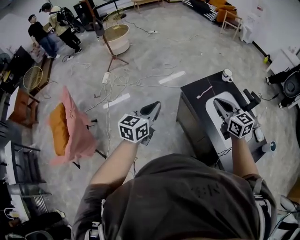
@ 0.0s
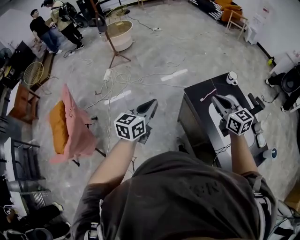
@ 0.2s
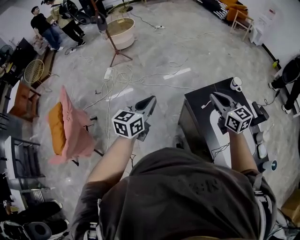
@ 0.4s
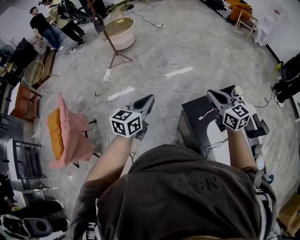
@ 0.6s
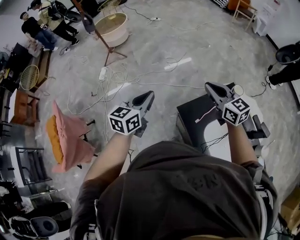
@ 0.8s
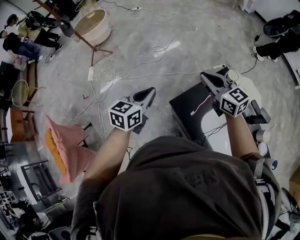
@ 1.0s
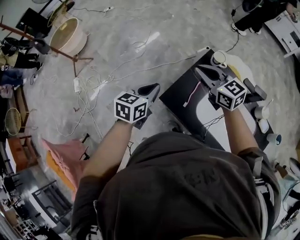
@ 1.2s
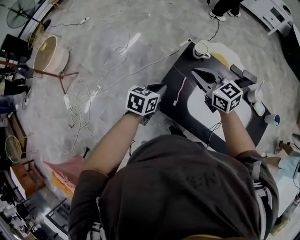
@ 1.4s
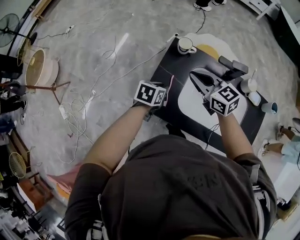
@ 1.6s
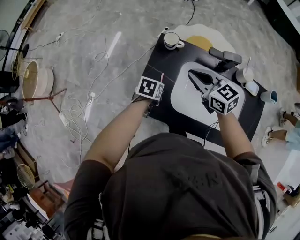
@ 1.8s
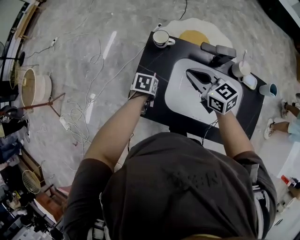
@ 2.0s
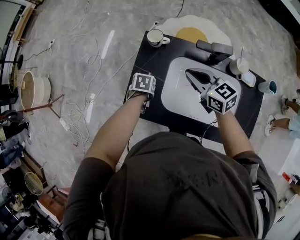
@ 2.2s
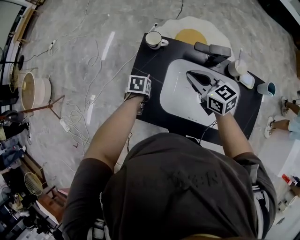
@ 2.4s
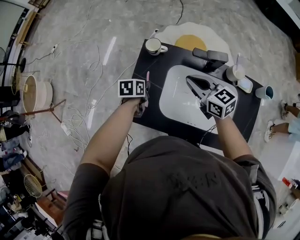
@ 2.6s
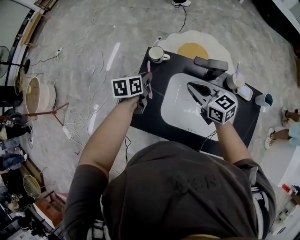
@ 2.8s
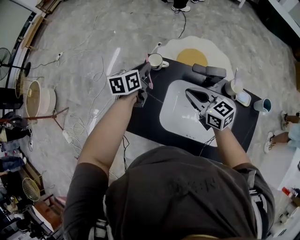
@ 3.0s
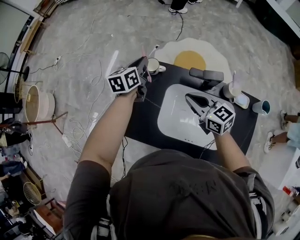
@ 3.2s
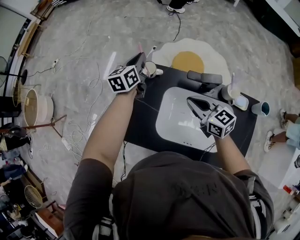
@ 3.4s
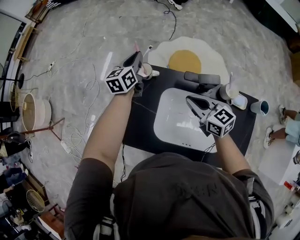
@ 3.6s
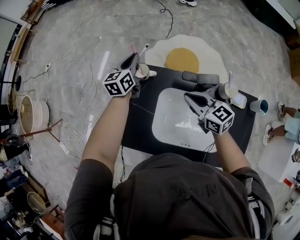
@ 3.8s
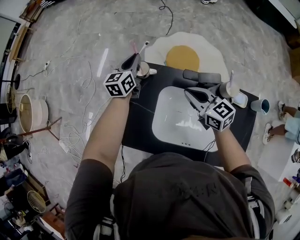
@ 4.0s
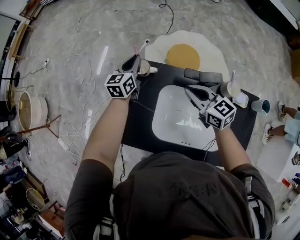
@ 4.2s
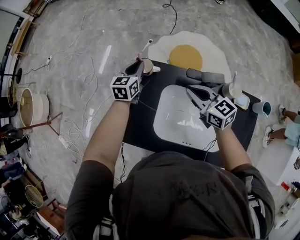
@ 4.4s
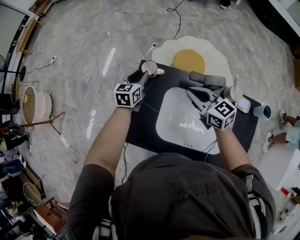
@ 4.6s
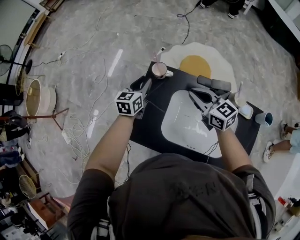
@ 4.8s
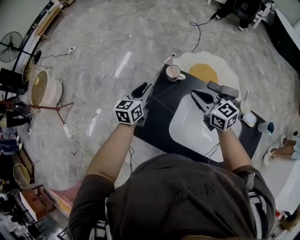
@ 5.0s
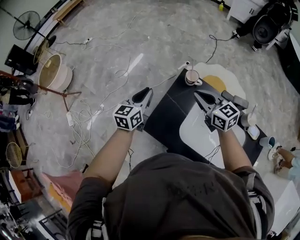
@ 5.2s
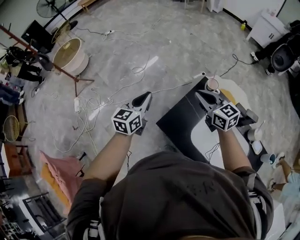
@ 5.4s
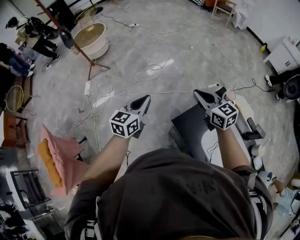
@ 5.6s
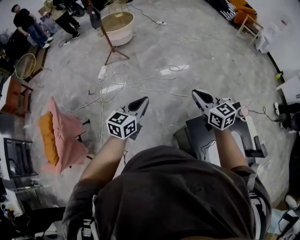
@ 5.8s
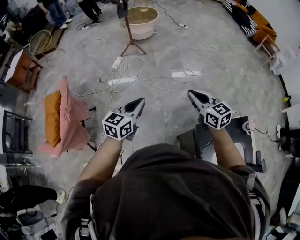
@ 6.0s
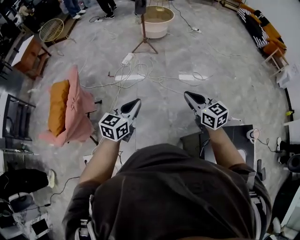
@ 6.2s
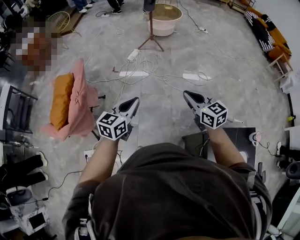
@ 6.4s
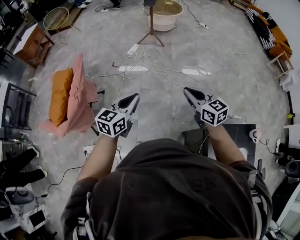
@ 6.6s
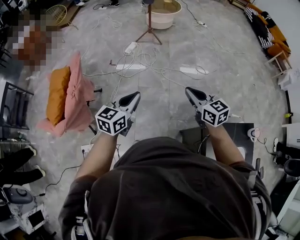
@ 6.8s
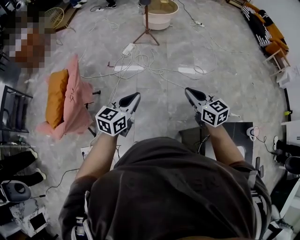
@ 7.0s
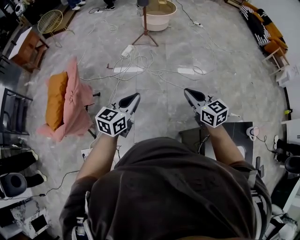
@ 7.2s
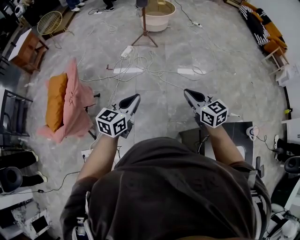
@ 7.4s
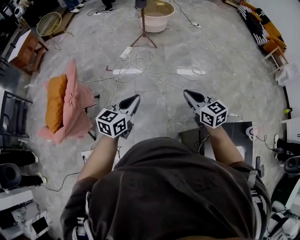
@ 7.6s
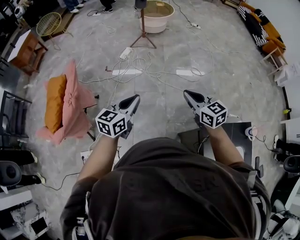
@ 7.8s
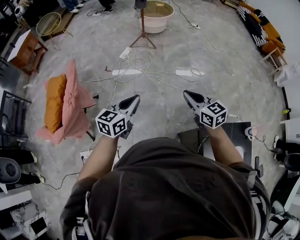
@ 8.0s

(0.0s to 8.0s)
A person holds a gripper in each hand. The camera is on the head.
0.0s - 1.6s: The right gripper shifts by approximately 30 cm, and swivels some 30 degrees. The left gripper shifts by some 50 cm, and angles its fingers downward, by about 40 degrees.
1.6s - 3.2s: The right gripper shifts by roughly 15 cm. Meanwhile the left gripper ends up some 25 cm from where it was, and changes its angle by some 30 degrees.
3.2s - 4.8s: The right gripper moves forward, some 5 cm. The left gripper goes some 5 cm downward, and opens its fingers.
4.8s - 6.4s: Both grippers are carried some 70 cm. The left gripper rotates roughly 60 degrees, and closes its fingers. The right gripper rotates approximately 70 degrees.
6.4s - 8.0s: The grippers move only a little.

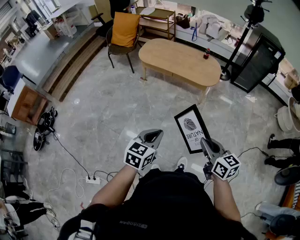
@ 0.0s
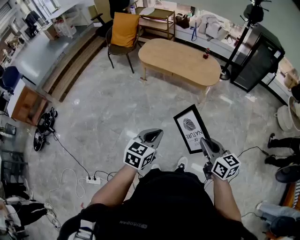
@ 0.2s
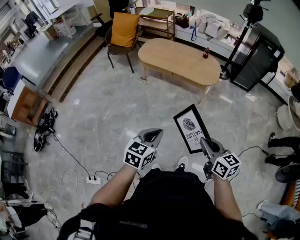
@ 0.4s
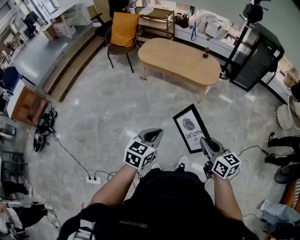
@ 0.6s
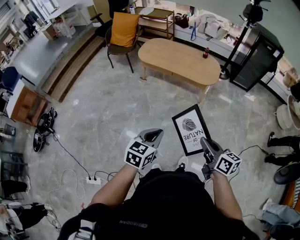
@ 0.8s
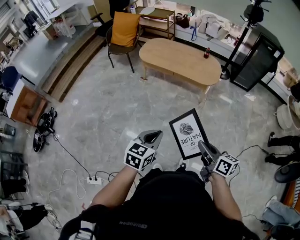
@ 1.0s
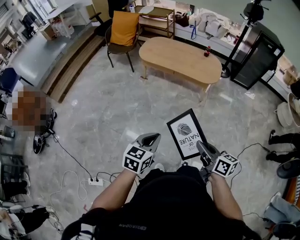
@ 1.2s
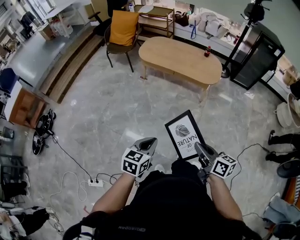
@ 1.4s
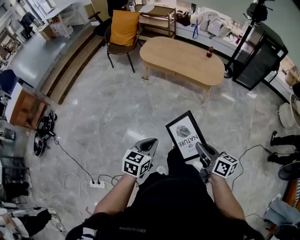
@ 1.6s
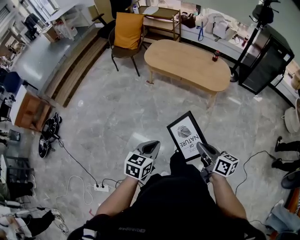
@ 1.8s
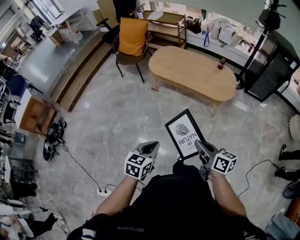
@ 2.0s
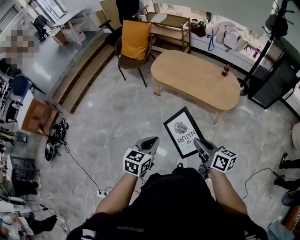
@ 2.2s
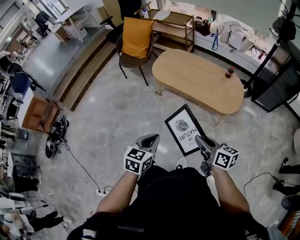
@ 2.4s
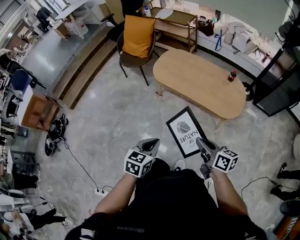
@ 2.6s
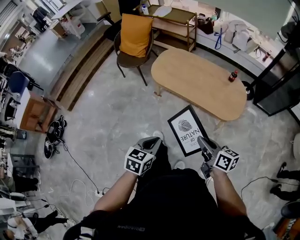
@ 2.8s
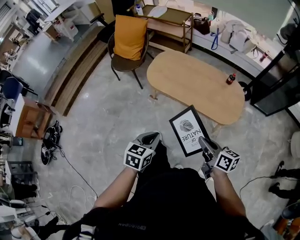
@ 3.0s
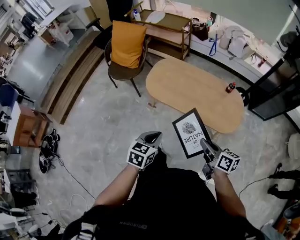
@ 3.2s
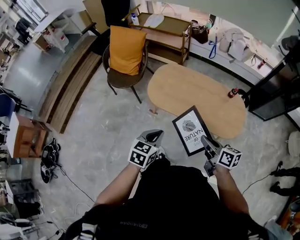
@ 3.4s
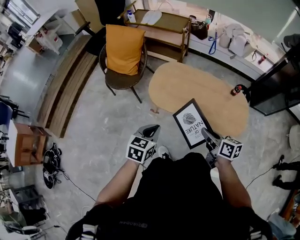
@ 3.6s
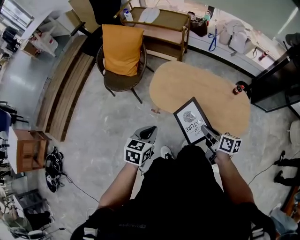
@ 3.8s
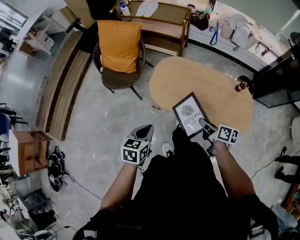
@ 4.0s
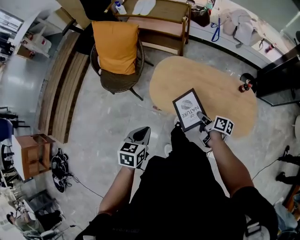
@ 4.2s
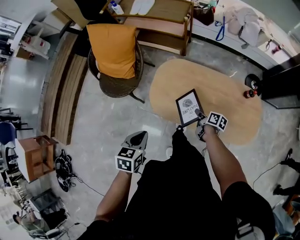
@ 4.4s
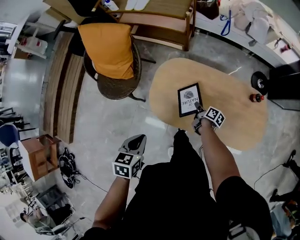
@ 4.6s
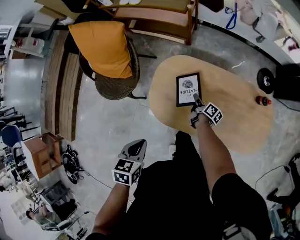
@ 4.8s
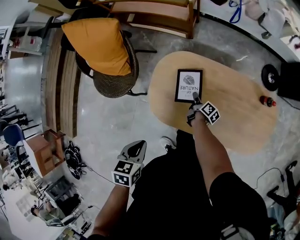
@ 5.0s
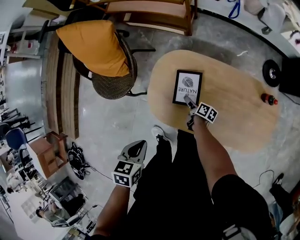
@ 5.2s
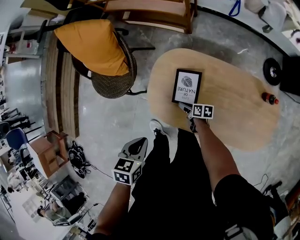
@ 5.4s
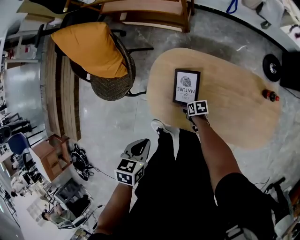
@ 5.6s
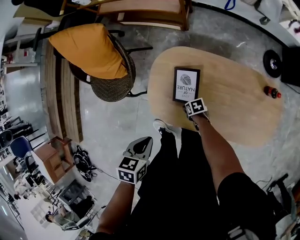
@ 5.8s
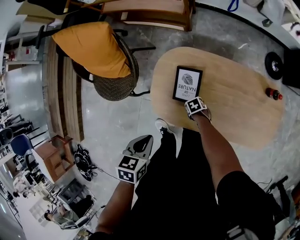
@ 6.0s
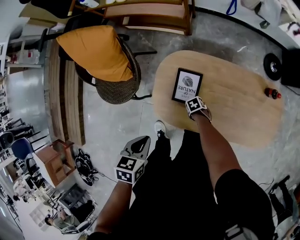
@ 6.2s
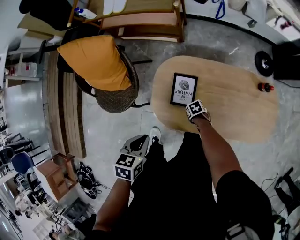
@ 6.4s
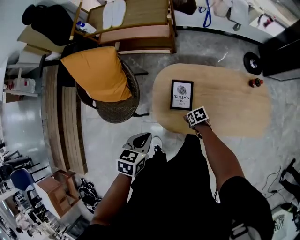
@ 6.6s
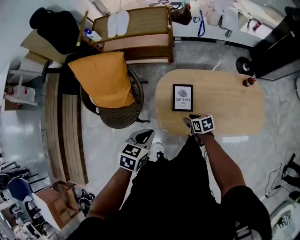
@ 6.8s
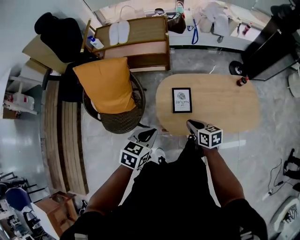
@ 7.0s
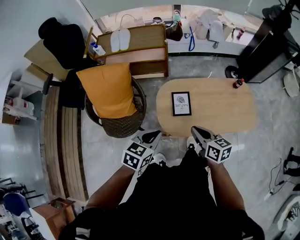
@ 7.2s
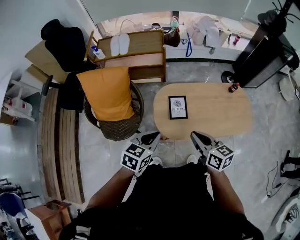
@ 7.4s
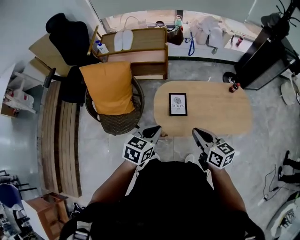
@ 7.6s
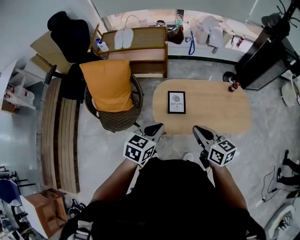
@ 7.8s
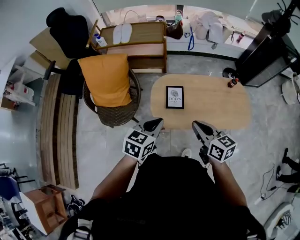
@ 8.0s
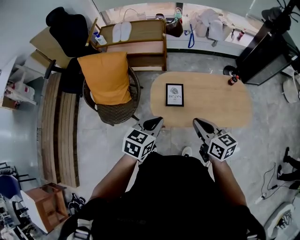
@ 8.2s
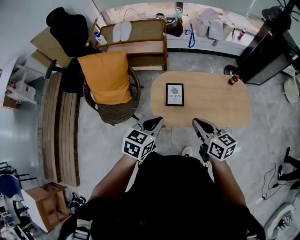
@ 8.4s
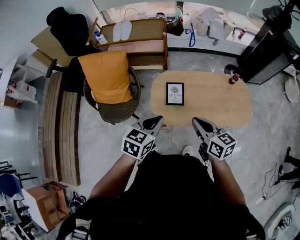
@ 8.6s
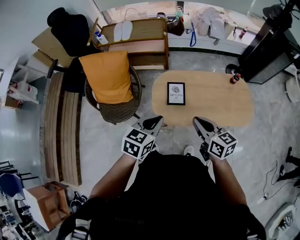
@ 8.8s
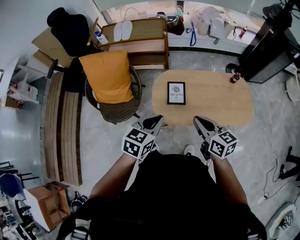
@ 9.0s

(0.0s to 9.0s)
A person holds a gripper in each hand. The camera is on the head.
0.0s - 1.6s: The grippers both shift to the left by about 10 cm. The right gripper rotates some 20 degrees.
1.6s - 3.0s: The two grippers travel together, forward, roughly 40 cm.
3.0s - 4.4s: Both grippers are carried forward, some 50 cm. The right gripper travels downward by roughly 25 cm, and rotates about 40 degrees.
4.4s - 6.0s: The left gripper shifts by approximately 15 cm, while the right gripper moves downward, some 25 cm, tips its fingers downward by approximately 30 degrees, and opens up.
6.0s - 7.6s: The right gripper is displaced upward by about 50 cm, points its fingers about 50 degrees further upward, and closes its fingers, while the left gripper goes about 20 cm upward, and rotates about 40 degrees.
7.6s - 9.0s: The left gripper is displaced to the right by some 5 cm.

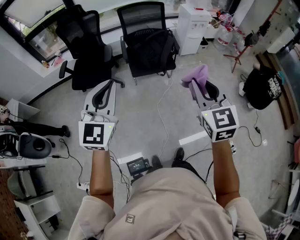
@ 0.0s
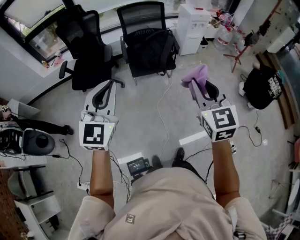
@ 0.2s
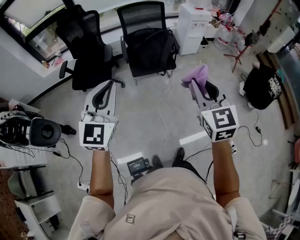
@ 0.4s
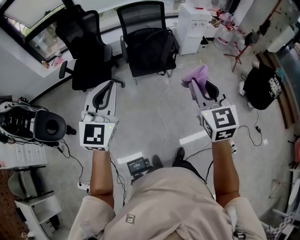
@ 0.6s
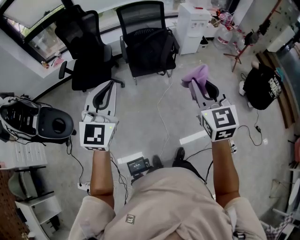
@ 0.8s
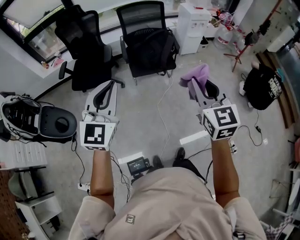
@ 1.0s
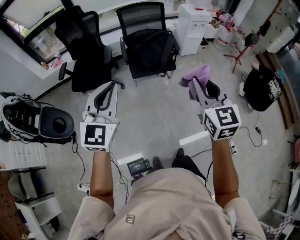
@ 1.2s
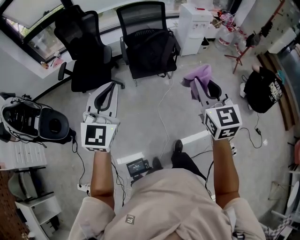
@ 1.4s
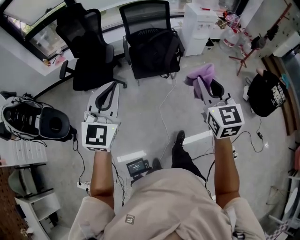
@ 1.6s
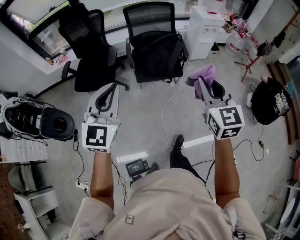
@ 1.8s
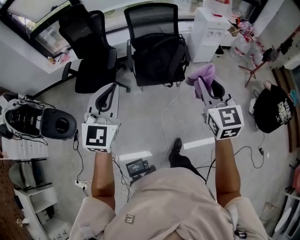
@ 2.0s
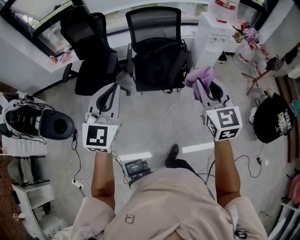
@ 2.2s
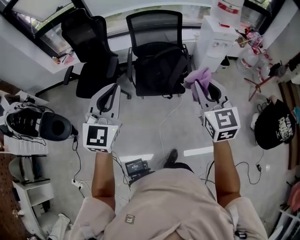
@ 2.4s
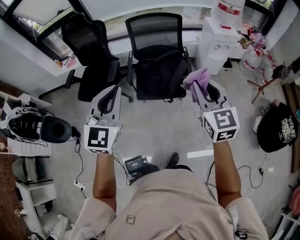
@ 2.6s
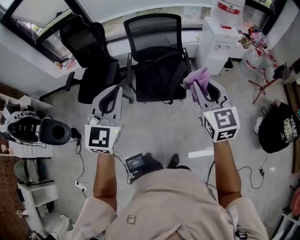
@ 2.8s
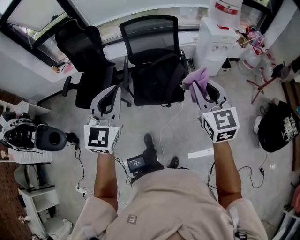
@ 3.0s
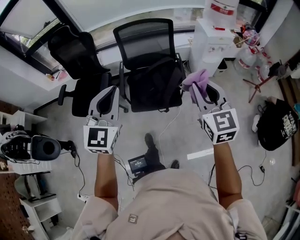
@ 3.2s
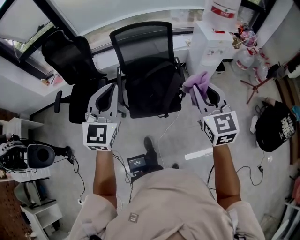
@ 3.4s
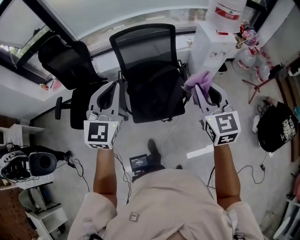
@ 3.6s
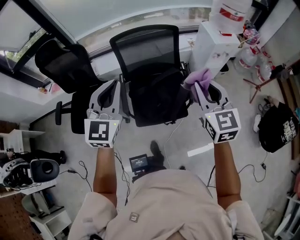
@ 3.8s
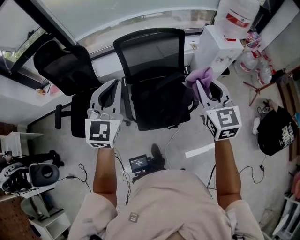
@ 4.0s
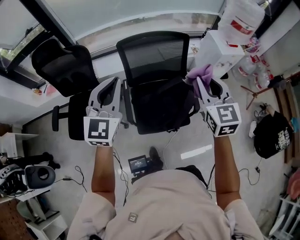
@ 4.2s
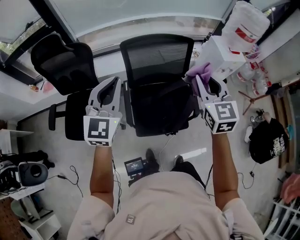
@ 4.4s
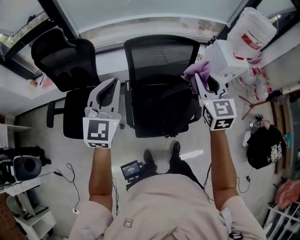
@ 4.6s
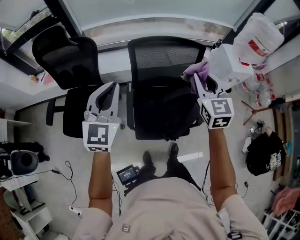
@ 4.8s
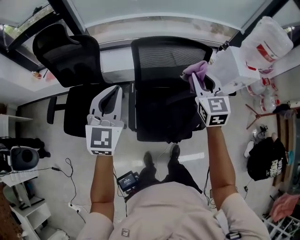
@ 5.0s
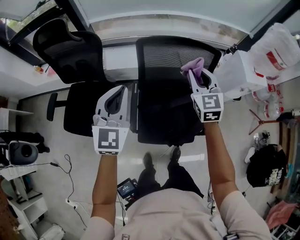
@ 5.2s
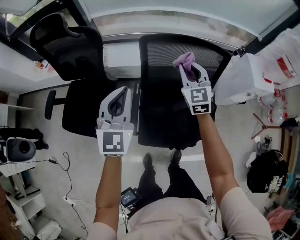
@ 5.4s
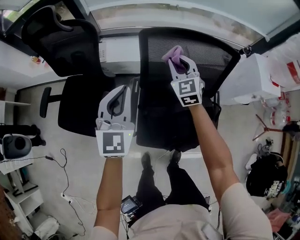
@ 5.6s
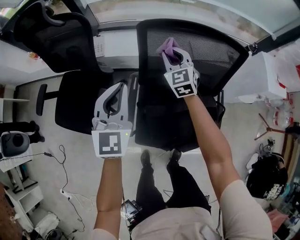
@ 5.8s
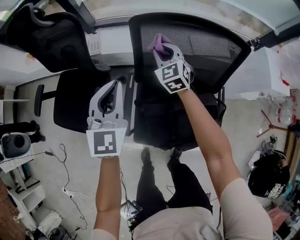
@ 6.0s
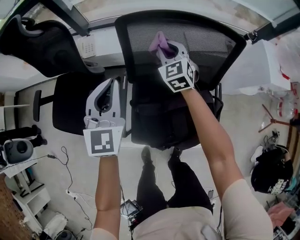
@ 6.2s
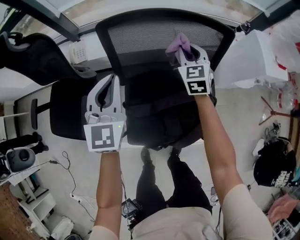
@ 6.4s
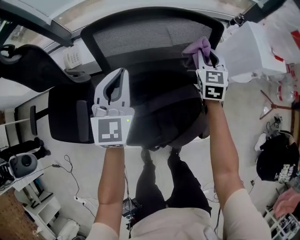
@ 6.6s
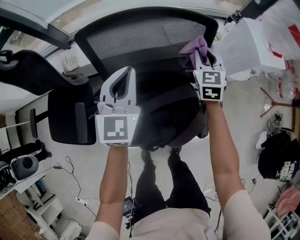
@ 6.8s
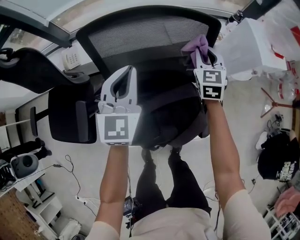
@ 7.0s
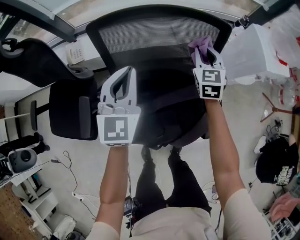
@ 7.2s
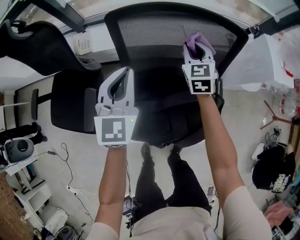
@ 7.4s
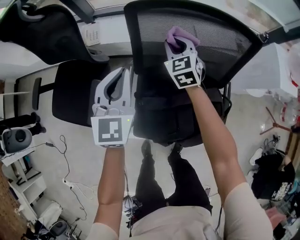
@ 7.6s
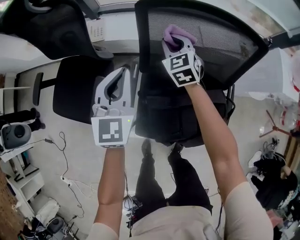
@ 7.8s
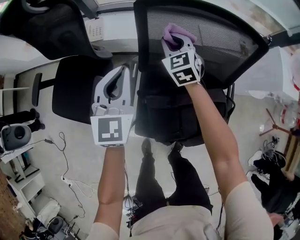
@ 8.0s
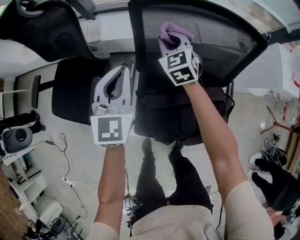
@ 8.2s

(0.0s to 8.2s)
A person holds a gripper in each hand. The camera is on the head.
0.0s - 1.6s: The grippers both shift forward by some 10 cm.
1.6s - 3.2s: Both grippers move forward and to the right, approximately 35 cm.
3.2s - 5.0s: The pair of grippers is taken forward and to the left, some 50 cm.
5.0s - 6.6s: The right gripper shifts some 40 cm downward, forward and to the right; the left gripper travels downward, to the right and forward by roughly 30 cm.
6.6s - 8.2s: The left gripper shifts some 15 cm to the left. Meanwhile the right gripper is displaced to the left by roughly 30 cm, and turns by roughly 30 degrees.
